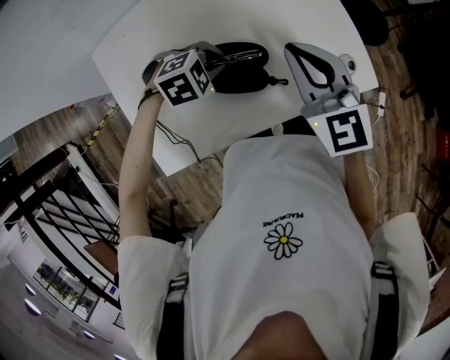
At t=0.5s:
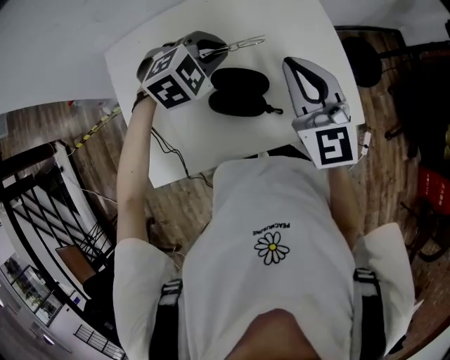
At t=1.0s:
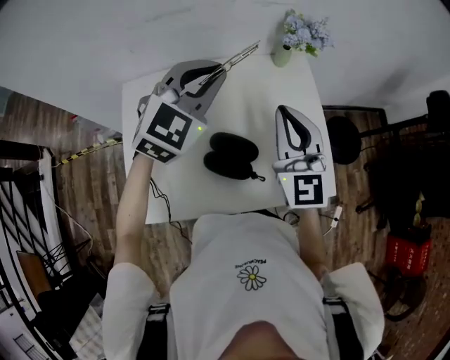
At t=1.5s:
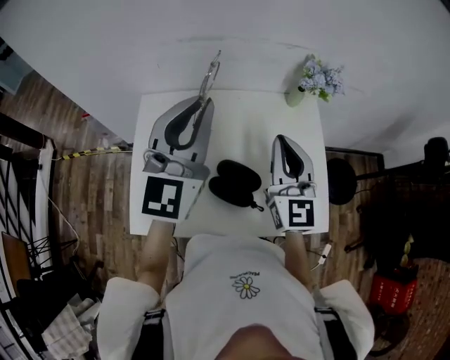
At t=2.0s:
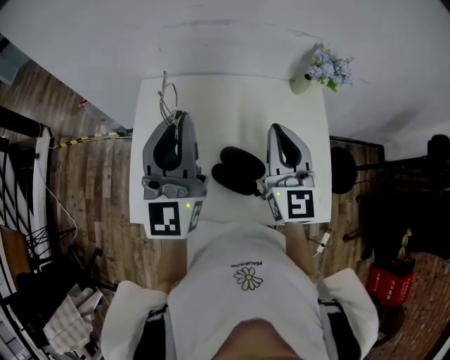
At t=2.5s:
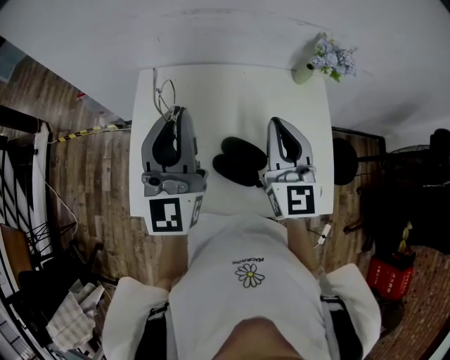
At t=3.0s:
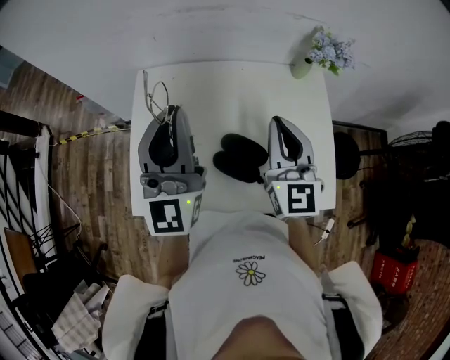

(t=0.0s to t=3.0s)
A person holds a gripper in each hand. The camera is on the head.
t=0.0s - t=1.5s: The left gripper moves upward, approximately 35 cm, and angles its fingers upward, by roughly 80 degrees; the right gripper goes about 10 cm upward.
t=1.5s - t=3.0s: The left gripper shifts some 5 cm to the left.

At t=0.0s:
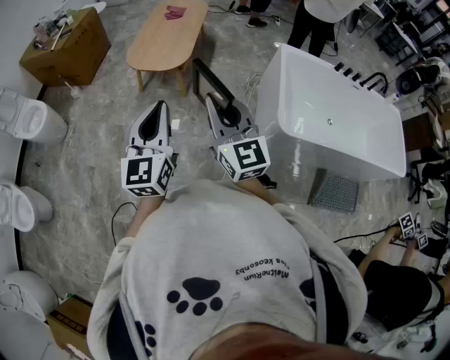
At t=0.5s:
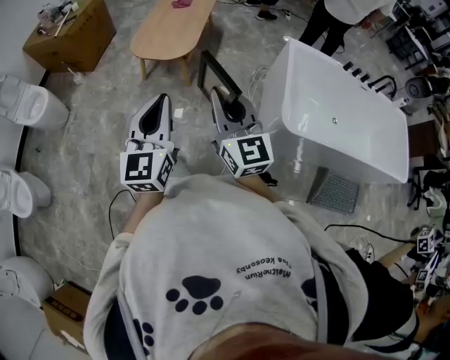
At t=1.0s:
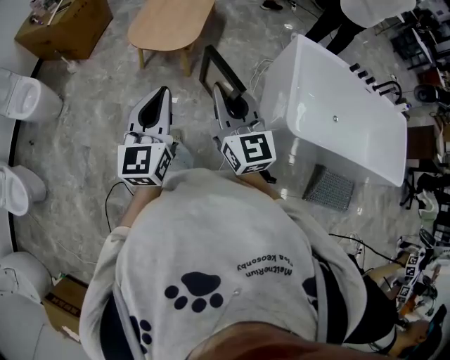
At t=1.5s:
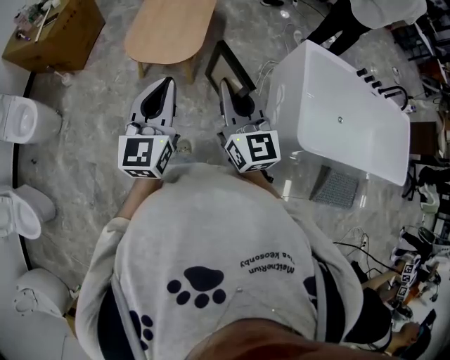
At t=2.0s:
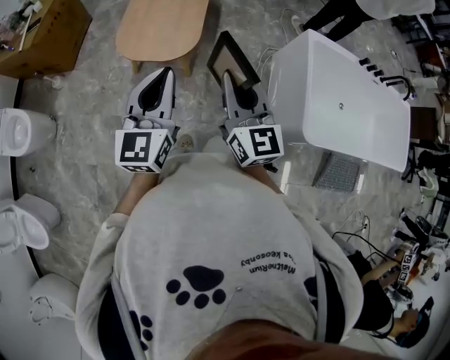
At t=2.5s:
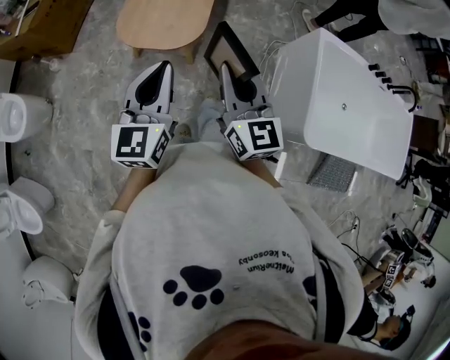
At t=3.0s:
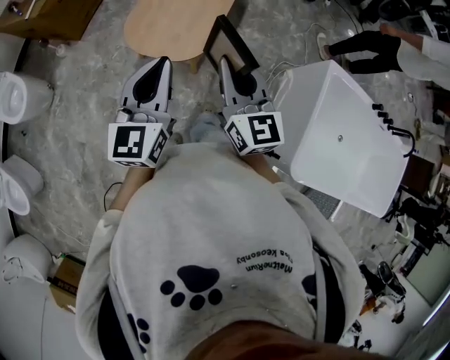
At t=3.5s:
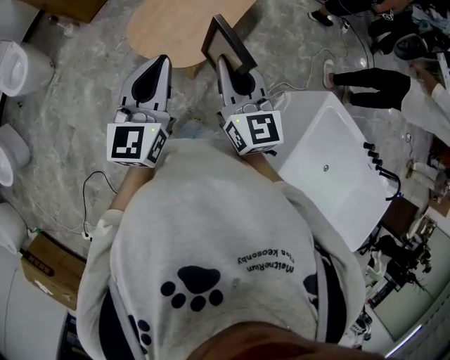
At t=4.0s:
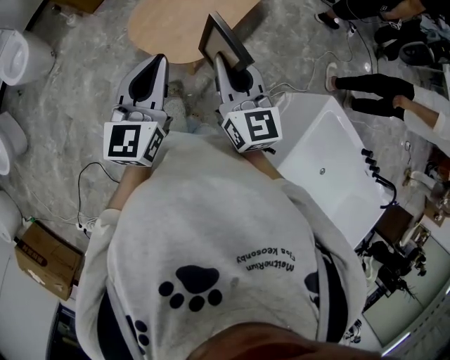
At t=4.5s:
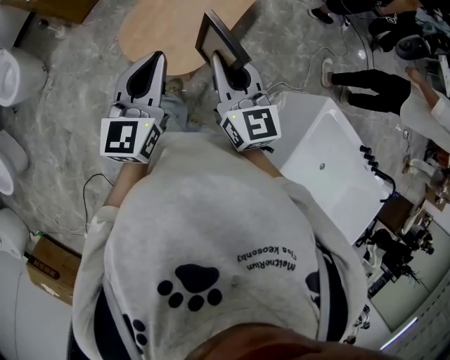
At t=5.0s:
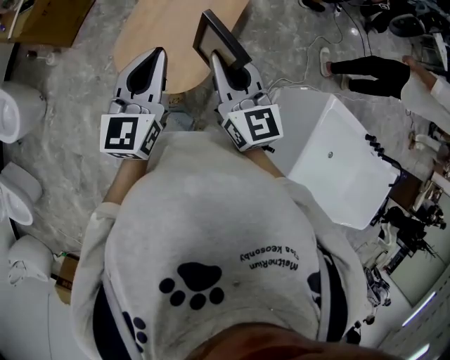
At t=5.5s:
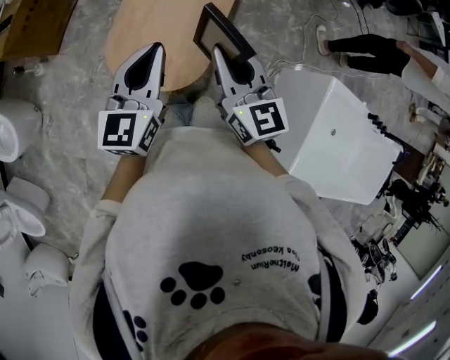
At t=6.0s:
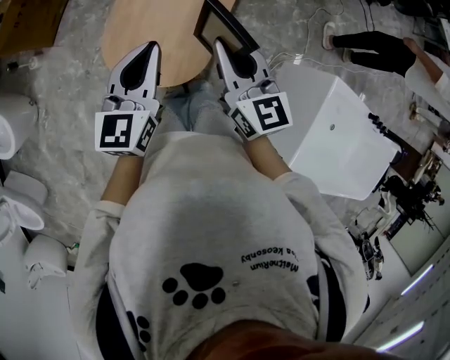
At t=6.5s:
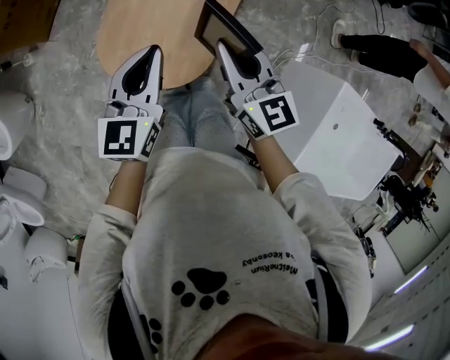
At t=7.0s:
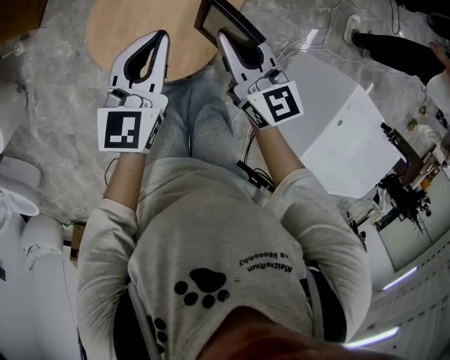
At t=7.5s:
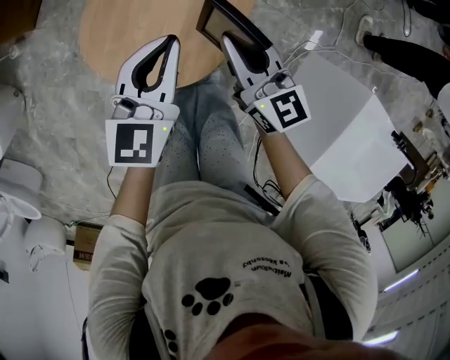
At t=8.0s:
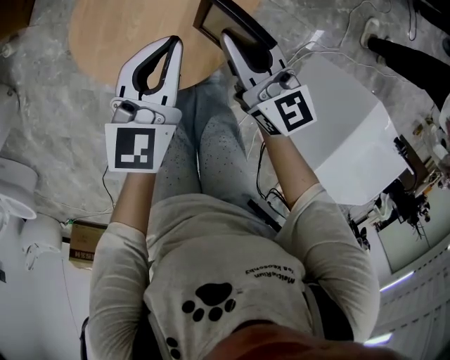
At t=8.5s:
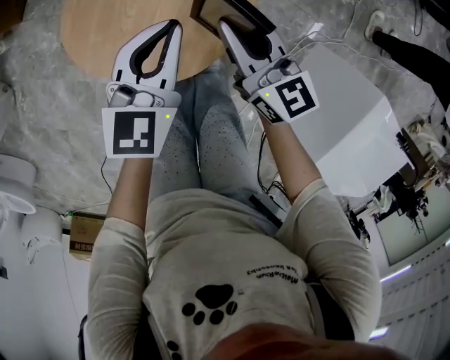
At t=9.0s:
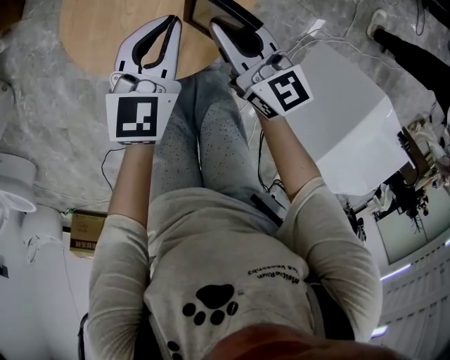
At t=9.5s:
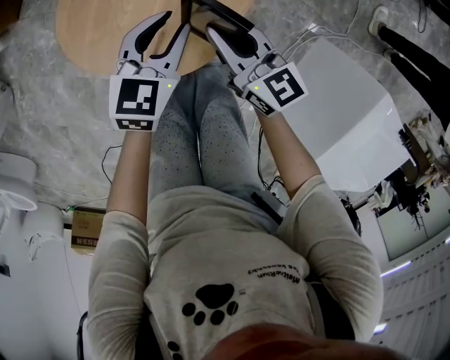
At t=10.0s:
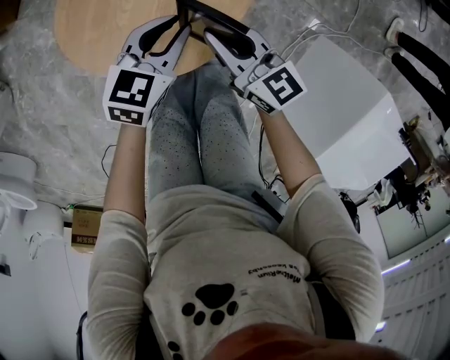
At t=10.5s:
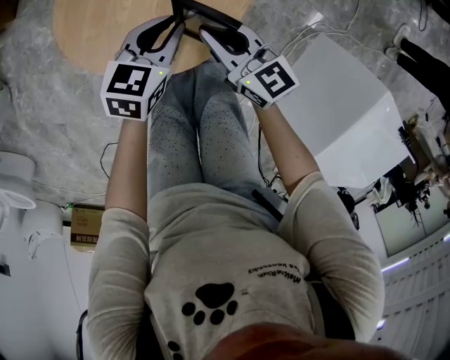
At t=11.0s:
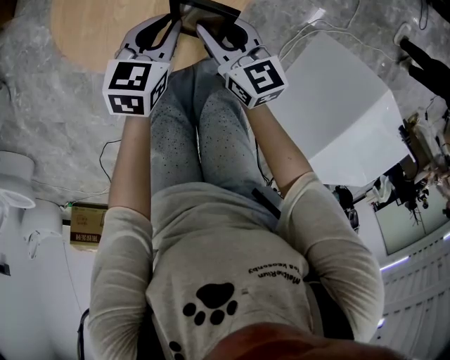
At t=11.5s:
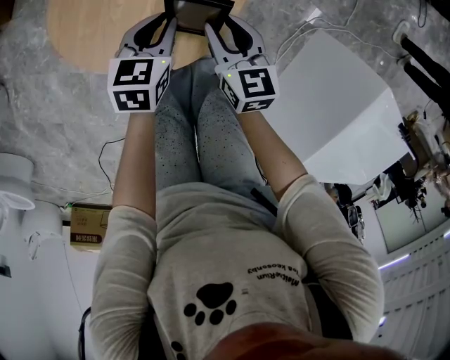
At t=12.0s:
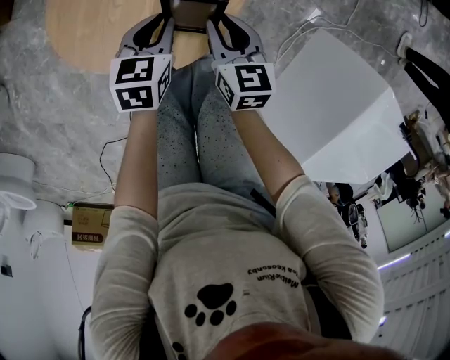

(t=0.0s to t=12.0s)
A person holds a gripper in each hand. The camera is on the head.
t=0.0s - t=2.0s: Both grippers move forward, approximately 30 cm.
t=2.0s - t=4.0s: The left gripper moves roughly 20 cm, and swivels about 30 degrees. Meanwhile the right gripper ends up some 25 cm from where it was, and swivels some 30 degrees.
t=4.0s - t=6.0s: Both grippers travel together forward, about 20 cm. The left gripper swivels about 20 degrees.
t=6.0s - t=8.0s: Both grippers move downward, approximately 20 cm.
t=8.0s - t=10.0s: Both grippers move downward, some 10 cm. The left gripper rotates approximately 20 degrees.
t=10.0s - t=12.0s: The two grippers go roughly 5 cm downward. The right gripper changes its angle by about 30 degrees.

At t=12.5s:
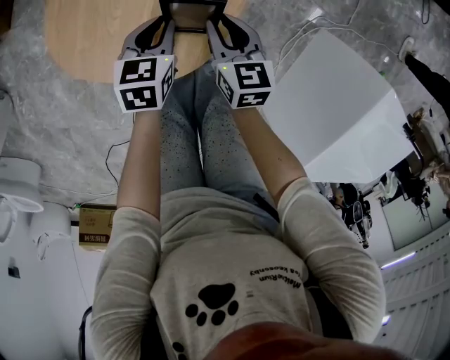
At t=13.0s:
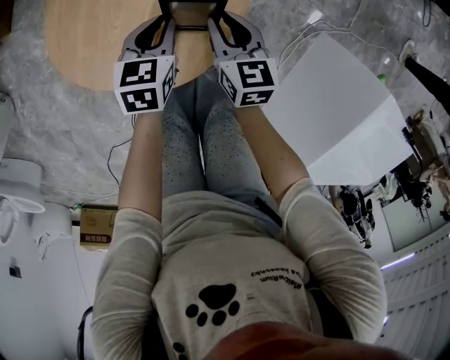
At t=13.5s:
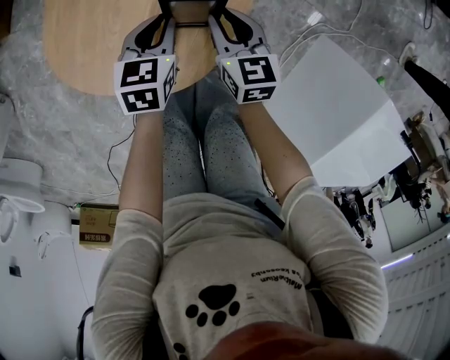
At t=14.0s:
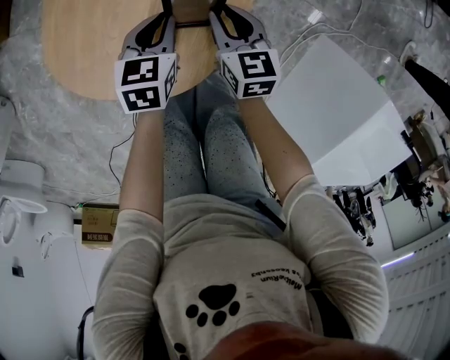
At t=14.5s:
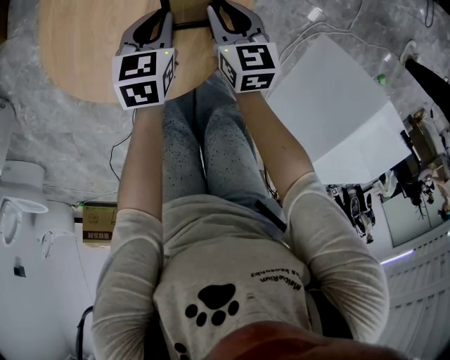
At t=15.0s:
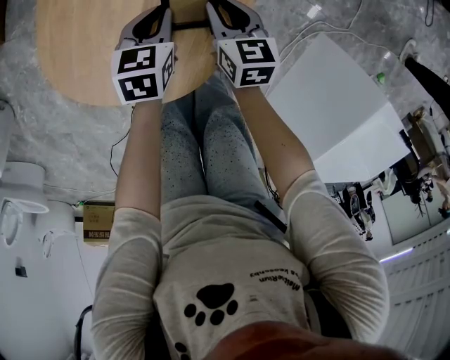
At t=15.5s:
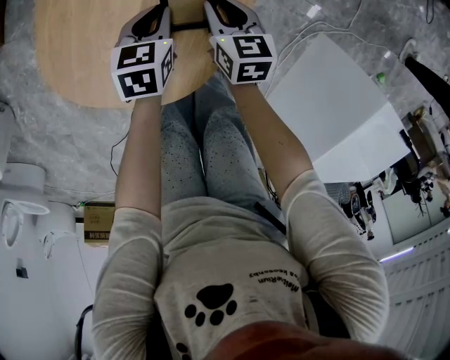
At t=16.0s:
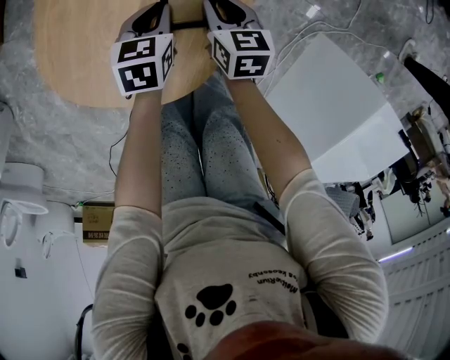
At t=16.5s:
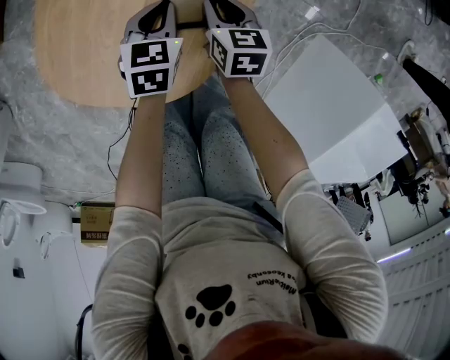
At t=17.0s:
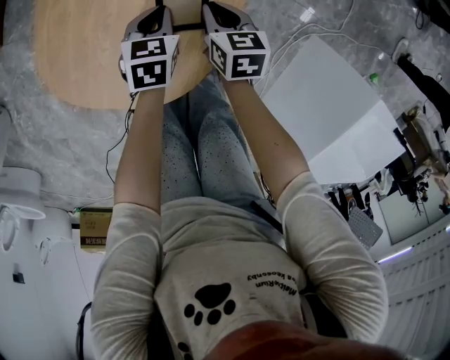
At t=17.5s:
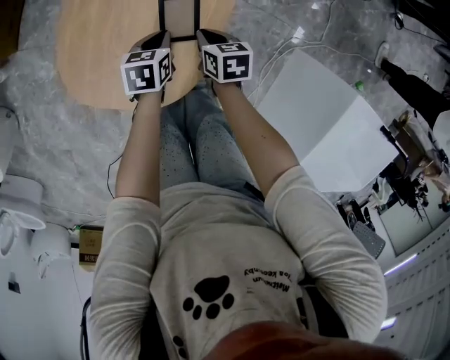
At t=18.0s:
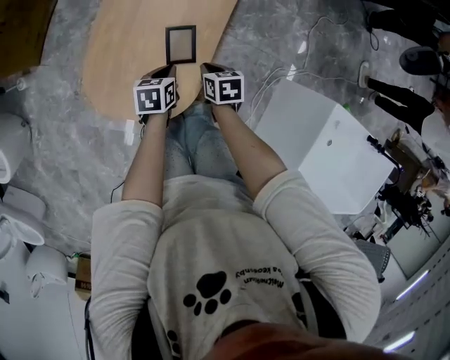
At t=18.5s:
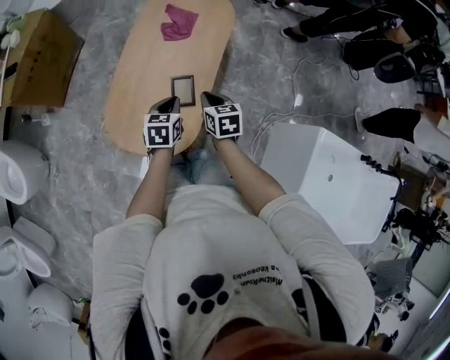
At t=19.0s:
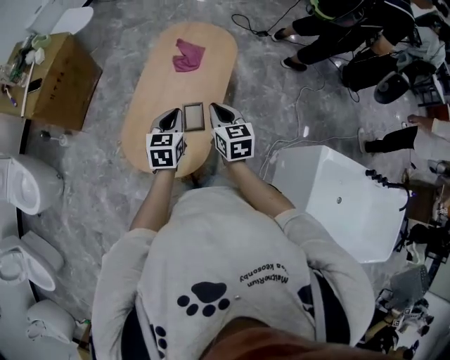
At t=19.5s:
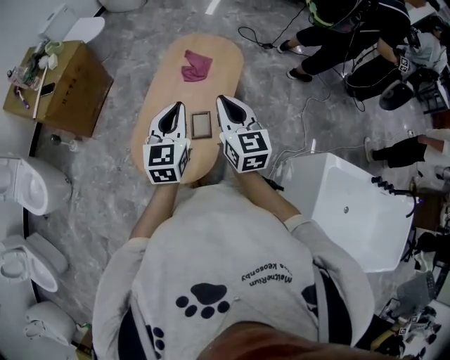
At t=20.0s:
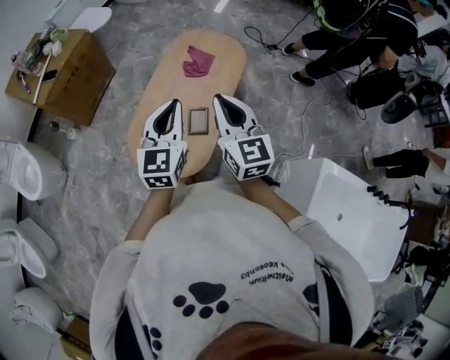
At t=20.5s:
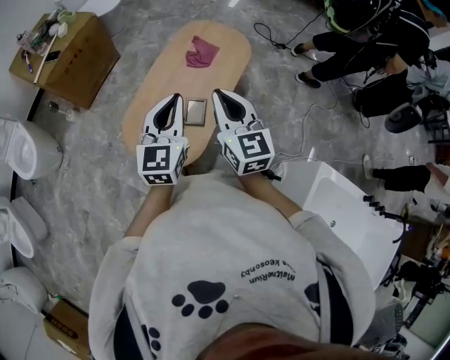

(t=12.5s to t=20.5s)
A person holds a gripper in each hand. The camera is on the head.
t=12.5s - t=14.5s: Both grippers travel together forward, about 5 cm.
t=14.5s - t=16.5s: The grippers make only small movements.
t=16.5s - t=18.5s: Both grippers travel together upward, roughly 25 cm.
t=18.5s - t=20.5s: The grippers both shift upward by roughly 25 cm. The right gripper tips its fingers upward by some 40 degrees. Meanwhile the left gripper points its fingers roughly 40 degrees further upward.

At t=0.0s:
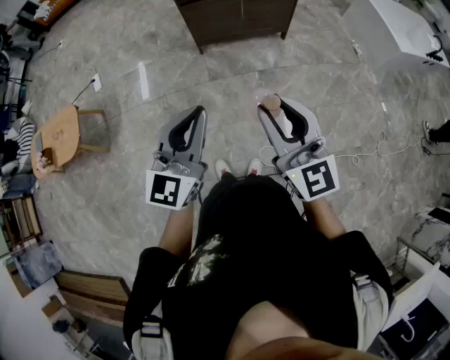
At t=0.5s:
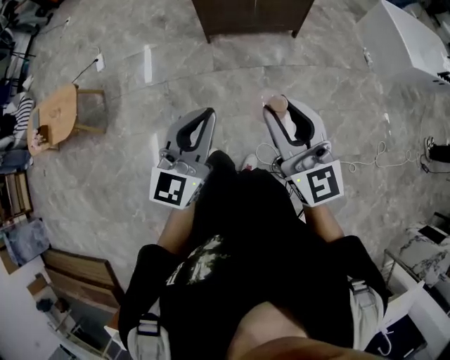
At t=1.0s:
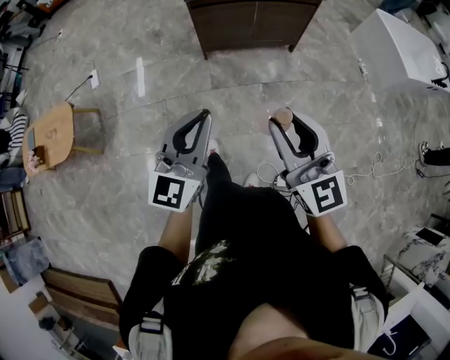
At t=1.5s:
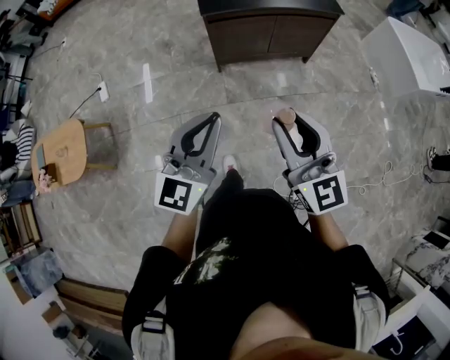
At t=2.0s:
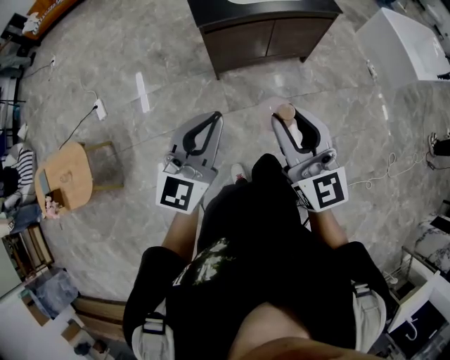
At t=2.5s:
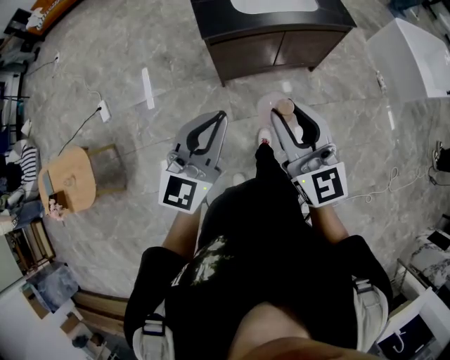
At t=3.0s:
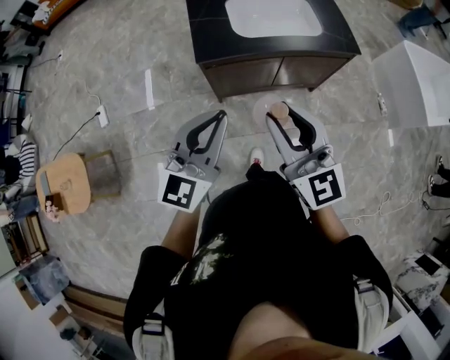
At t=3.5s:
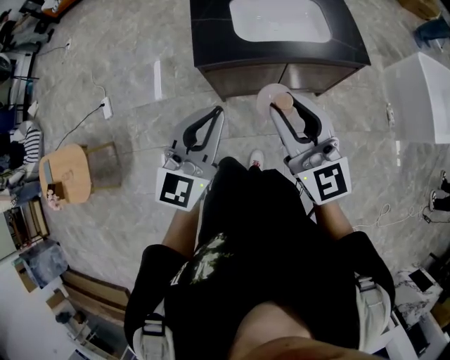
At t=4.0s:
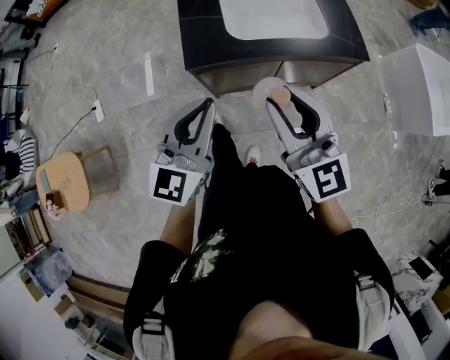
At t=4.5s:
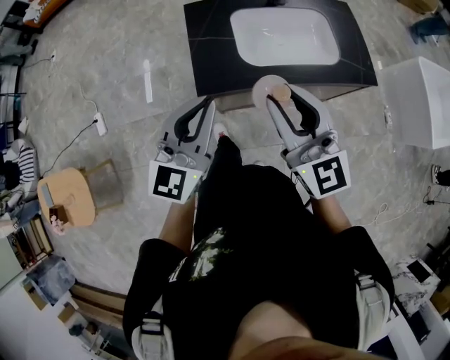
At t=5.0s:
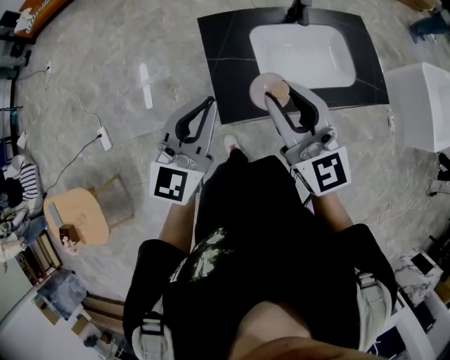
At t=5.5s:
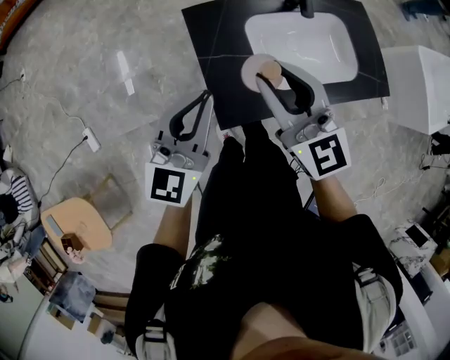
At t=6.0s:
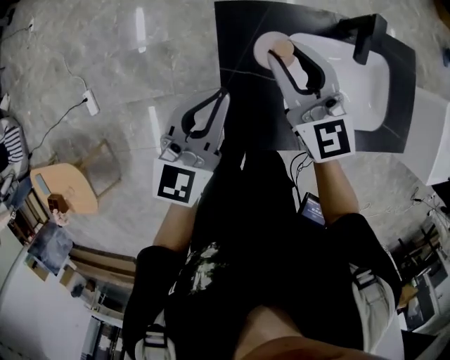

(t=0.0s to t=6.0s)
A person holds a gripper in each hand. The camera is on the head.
t=0.0s - t=2.0s: Both grippers are carried forward and to the left, about 40 cm.
t=2.0s - t=4.0s: Both grippers are carried forward, some 40 cm.
t=4.0s - t=6.0s: The pair of grippers is taken forward, some 60 cm.
